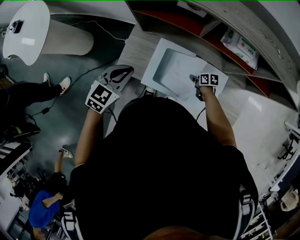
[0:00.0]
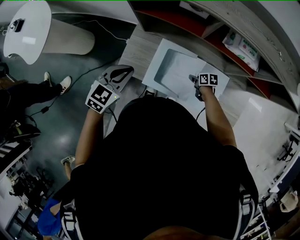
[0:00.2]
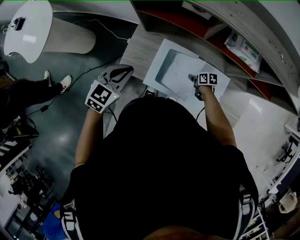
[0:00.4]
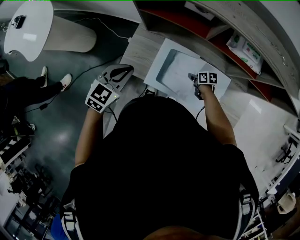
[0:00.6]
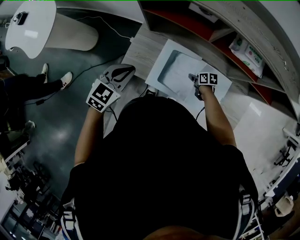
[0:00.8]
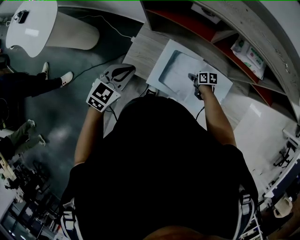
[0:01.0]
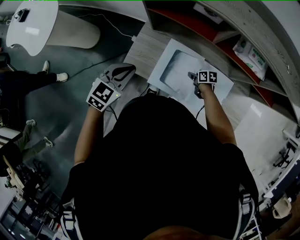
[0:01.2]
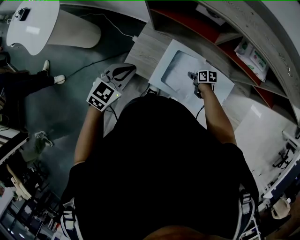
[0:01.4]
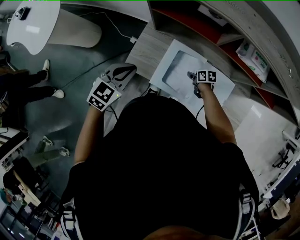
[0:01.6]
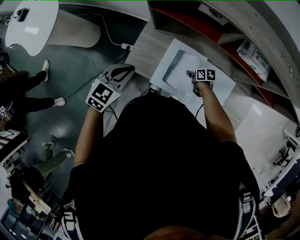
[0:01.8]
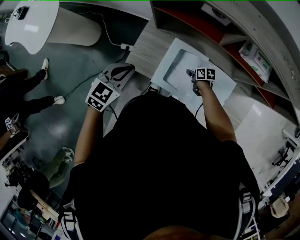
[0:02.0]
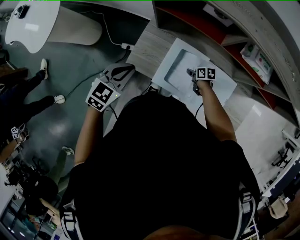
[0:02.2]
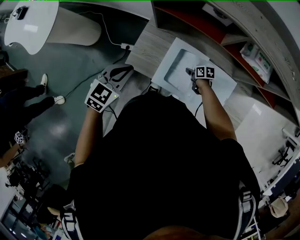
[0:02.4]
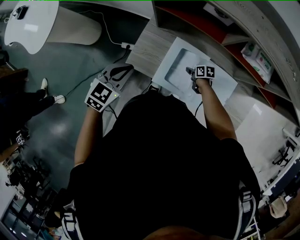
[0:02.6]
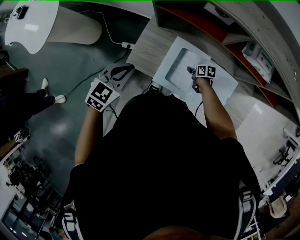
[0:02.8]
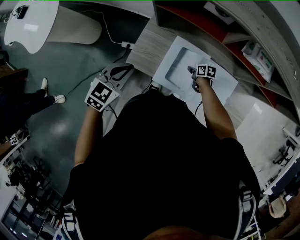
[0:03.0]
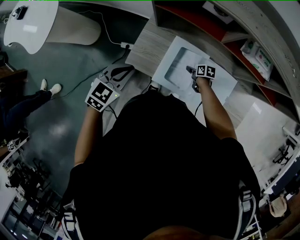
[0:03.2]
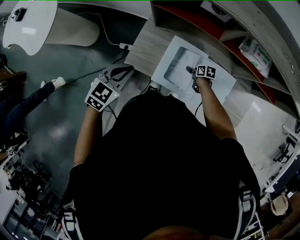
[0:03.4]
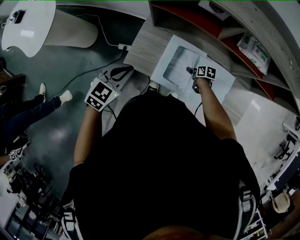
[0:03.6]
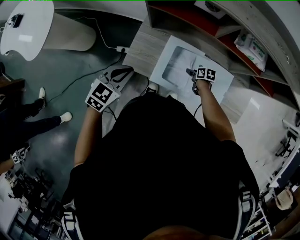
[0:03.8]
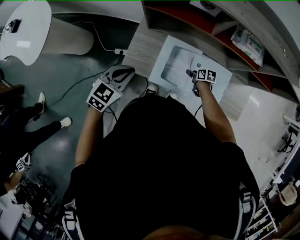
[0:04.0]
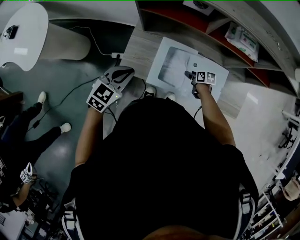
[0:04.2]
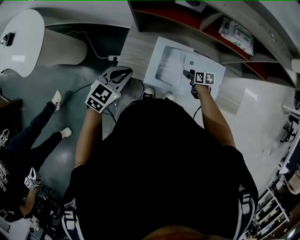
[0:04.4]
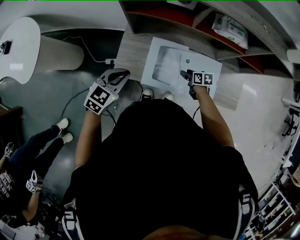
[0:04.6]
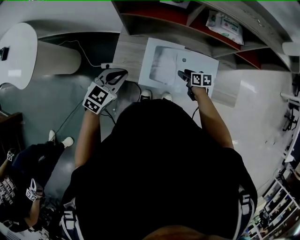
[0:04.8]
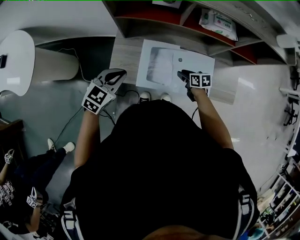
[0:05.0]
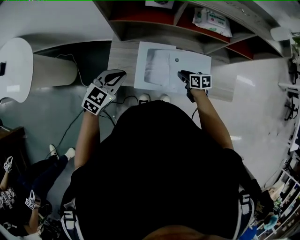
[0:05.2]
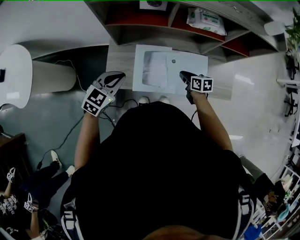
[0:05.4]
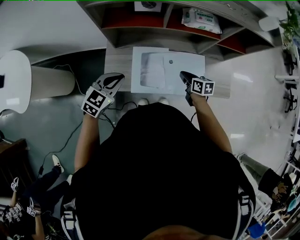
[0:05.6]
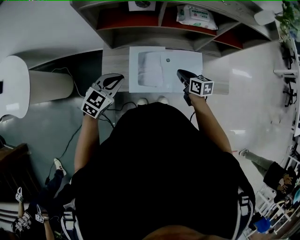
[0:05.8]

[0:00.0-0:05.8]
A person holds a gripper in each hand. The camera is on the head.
0:00.0 to 0:01.4: The right gripper heads to the left, covering approximately 5 cm.
0:01.4 to 0:02.8: The grippers stay close to where they were, moving slightly.
0:02.8 to 0:04.4: The right gripper heads upward, backward and to the right, covering roughly 10 cm, and opens.
0:04.4 to 0:05.8: The left gripper heads to the right, covering some 5 cm. The right gripper is displaced upward by about 15 cm, swivels approximately 20 degrees, and closes its fingers.

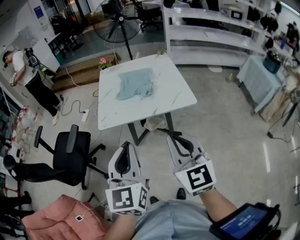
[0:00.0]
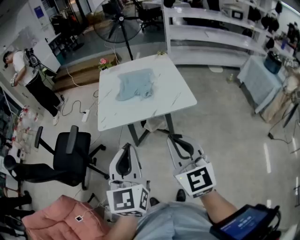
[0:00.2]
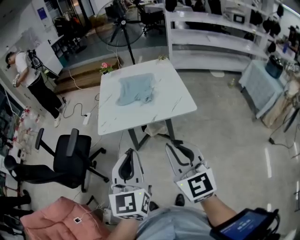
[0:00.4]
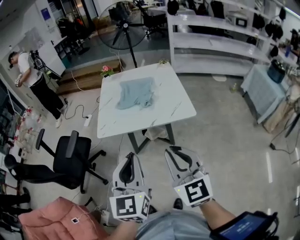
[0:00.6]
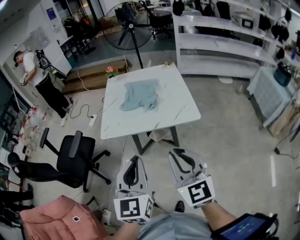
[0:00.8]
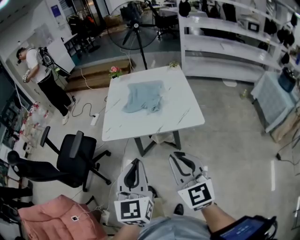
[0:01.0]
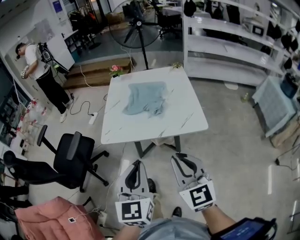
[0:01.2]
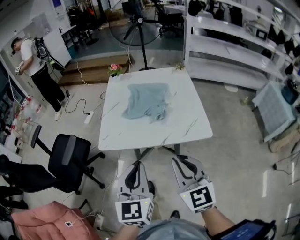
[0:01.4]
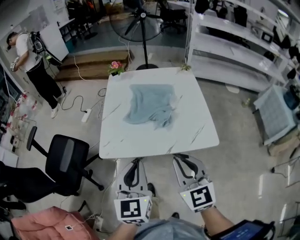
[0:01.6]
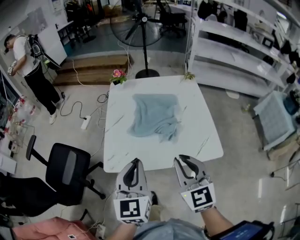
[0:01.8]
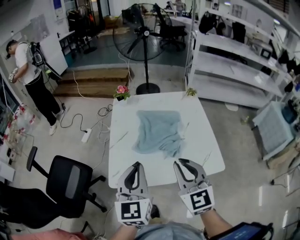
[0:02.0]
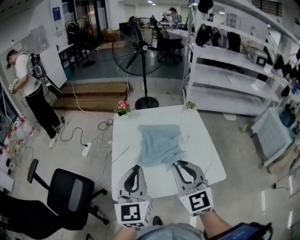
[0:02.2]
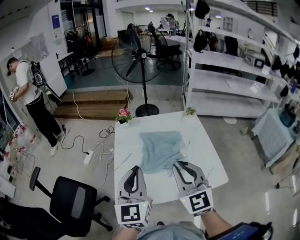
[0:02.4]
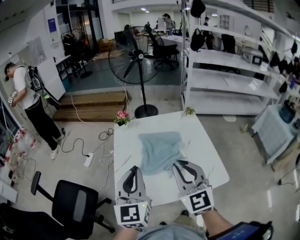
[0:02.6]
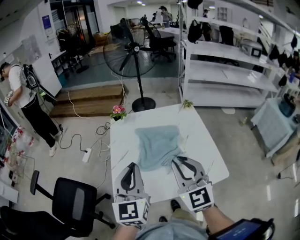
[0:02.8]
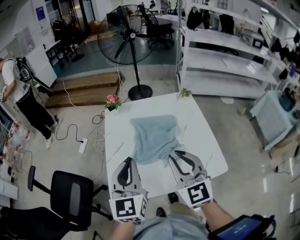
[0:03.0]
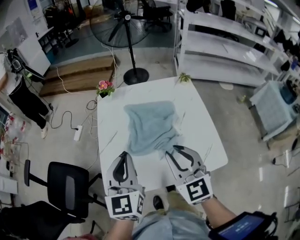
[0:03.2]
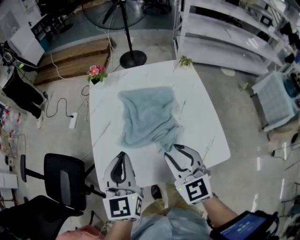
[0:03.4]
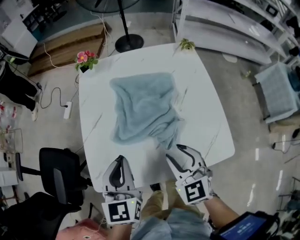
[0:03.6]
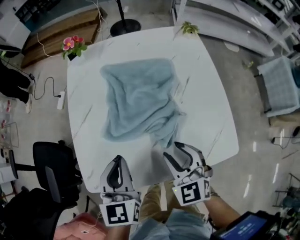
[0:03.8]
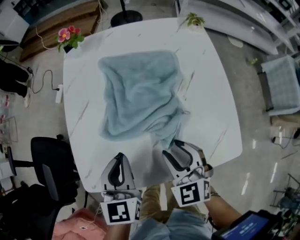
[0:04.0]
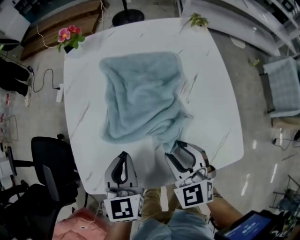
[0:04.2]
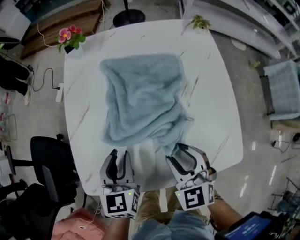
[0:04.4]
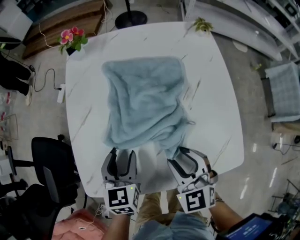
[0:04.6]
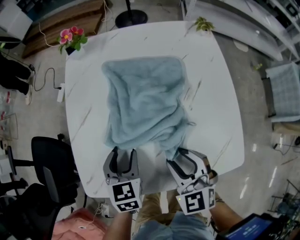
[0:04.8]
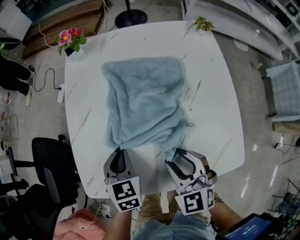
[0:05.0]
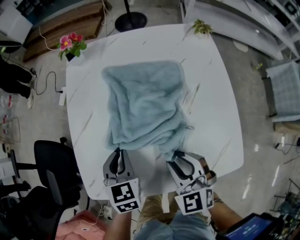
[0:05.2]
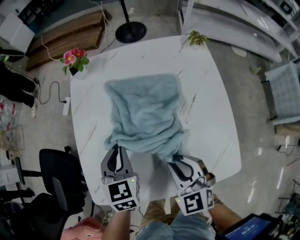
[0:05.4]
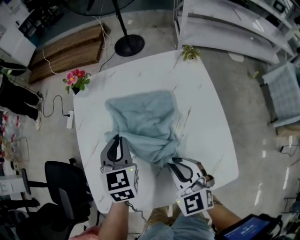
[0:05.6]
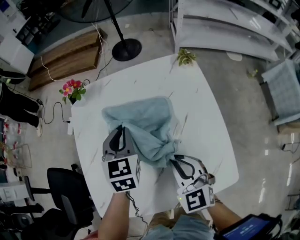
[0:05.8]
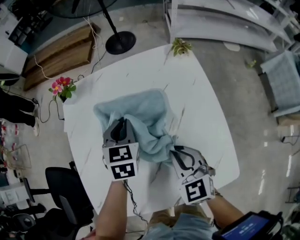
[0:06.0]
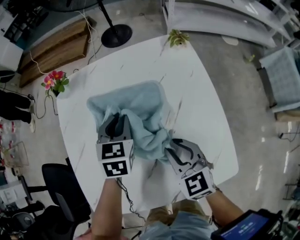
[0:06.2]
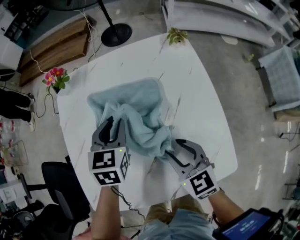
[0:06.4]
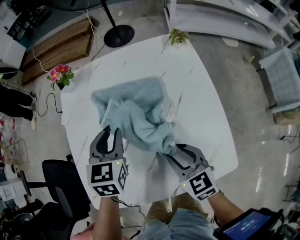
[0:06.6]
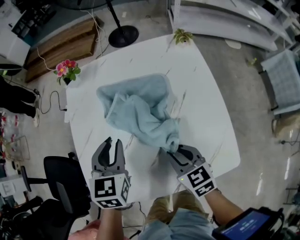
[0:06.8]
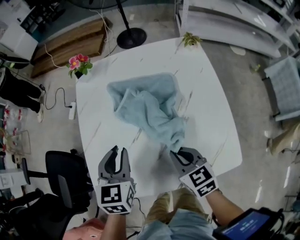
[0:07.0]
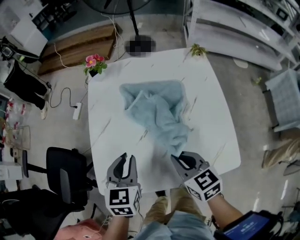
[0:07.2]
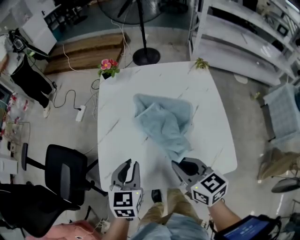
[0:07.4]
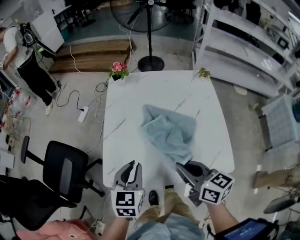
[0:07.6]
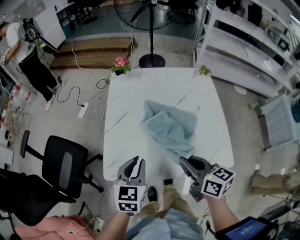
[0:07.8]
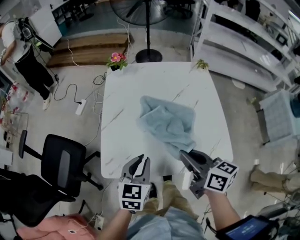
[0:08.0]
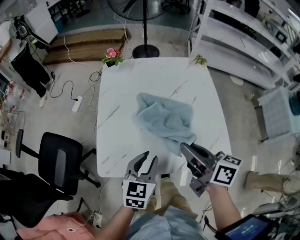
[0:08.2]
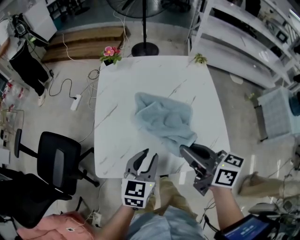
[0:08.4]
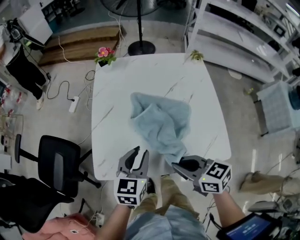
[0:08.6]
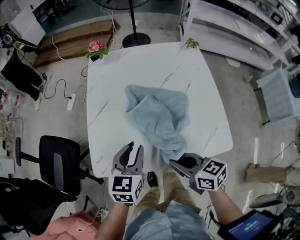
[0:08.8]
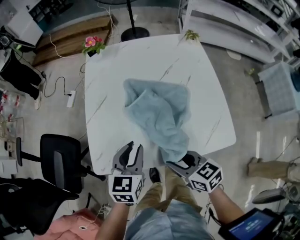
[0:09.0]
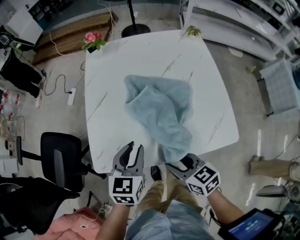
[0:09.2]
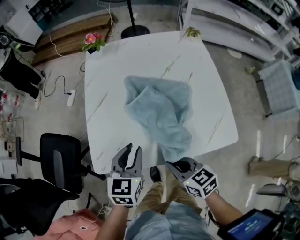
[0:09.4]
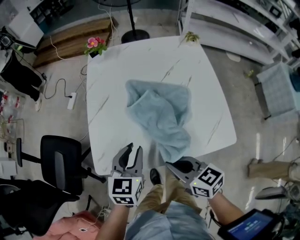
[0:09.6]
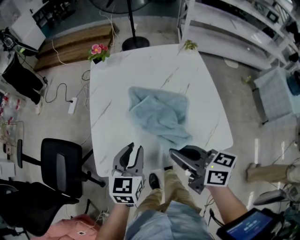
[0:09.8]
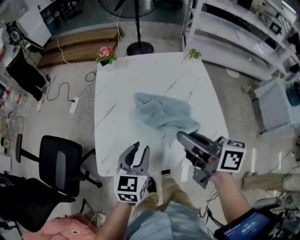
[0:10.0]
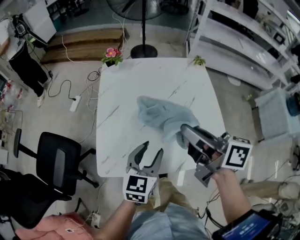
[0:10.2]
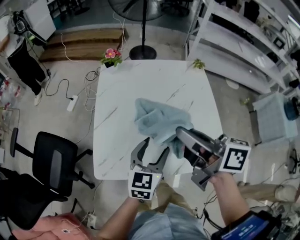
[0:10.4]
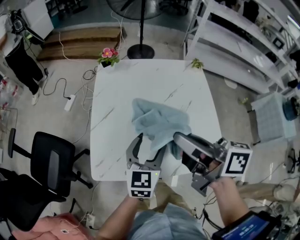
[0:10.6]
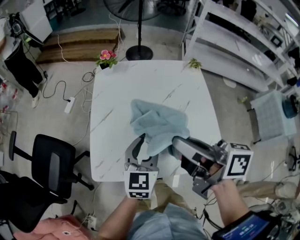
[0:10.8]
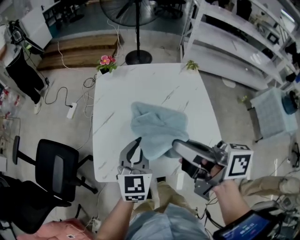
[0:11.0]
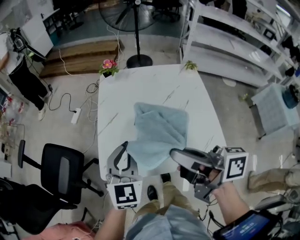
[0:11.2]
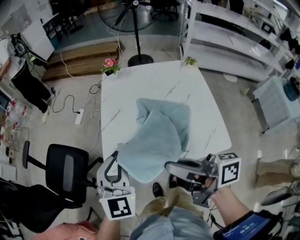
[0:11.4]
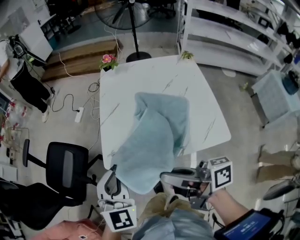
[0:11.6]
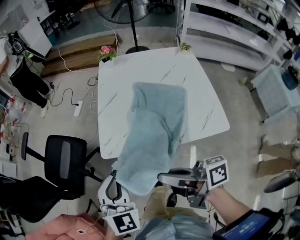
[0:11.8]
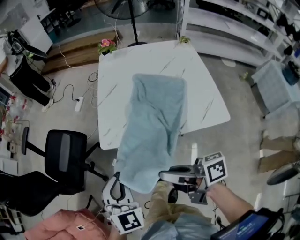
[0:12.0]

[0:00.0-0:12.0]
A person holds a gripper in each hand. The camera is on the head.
0:00.0 to 0:01.6: Both grippers travel together forward and downward, approximately 25 cm.
0:01.6 to 0:03.0: Both grippers move forward, some 20 cm.
0:03.0 to 0:04.4: The grippers both shift downward by some 25 cm. The right gripper rotates some 30 degrees, and opens its fingers, while the left gripper swivels approximately 30 degrees, and opens.
0:04.4 to 0:06.0: The right gripper shifts some 10 cm forward and to the right, and closes up, while the left gripper travels forward and to the right by roughly 25 cm, and opens, then closes once more.
0:06.0 to 0:07.6: The left gripper heads backward and to the left, covering some 30 cm, while the right gripper heads backward, to the left and upward, covering some 20 cm, changes its angle by roughly 40 degrees, and opens, then closes again.
0:07.6 to 0:09.0: The left gripper changes place by some 5 cm; the right gripper heads downward and backward, covering approximately 15 cm, and opens its fingers.
0:09.0 to 0:10.4: The left gripper moves to the right, some 5 cm, and opens; the right gripper travels upward and forward by about 25 cm, turns by about 40 degrees, and closes its fingers.
0:10.4 to 0:12.0: The right gripper travels backward, to the left and downward by approximately 30 cm, and changes its angle by about 30 degrees. Meanwhile the left gripper moves to the left and backward, approximately 30 cm, changes its angle by some 40 degrees, and closes.

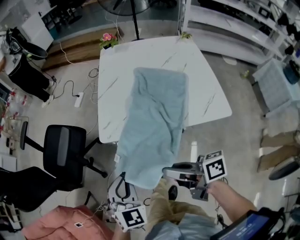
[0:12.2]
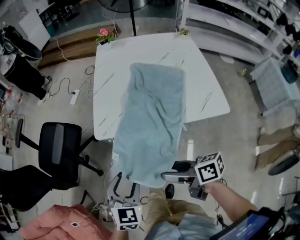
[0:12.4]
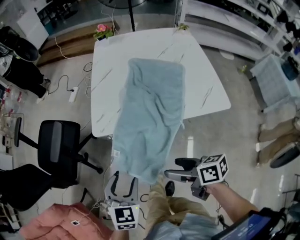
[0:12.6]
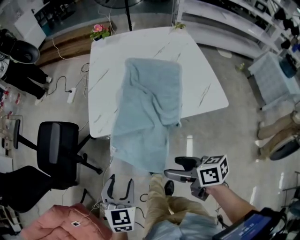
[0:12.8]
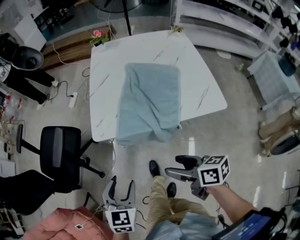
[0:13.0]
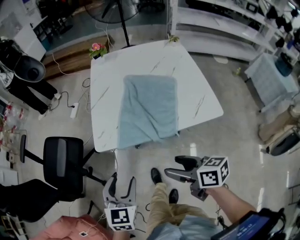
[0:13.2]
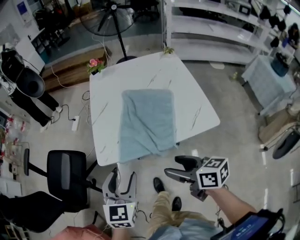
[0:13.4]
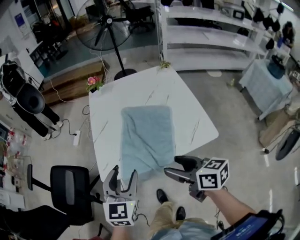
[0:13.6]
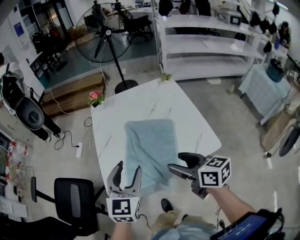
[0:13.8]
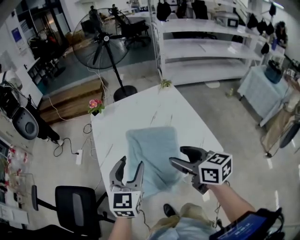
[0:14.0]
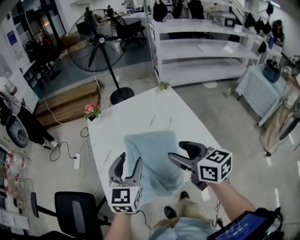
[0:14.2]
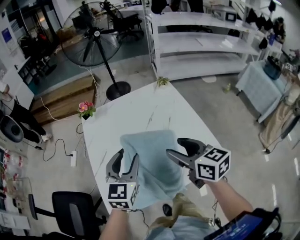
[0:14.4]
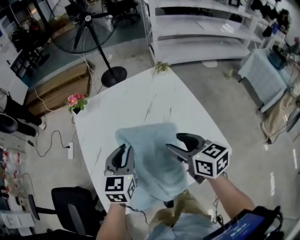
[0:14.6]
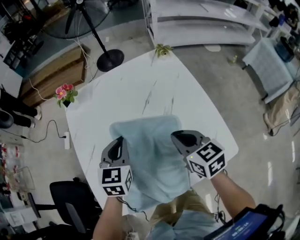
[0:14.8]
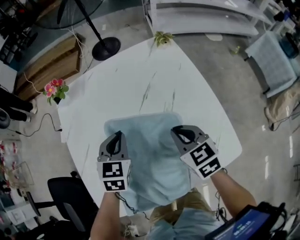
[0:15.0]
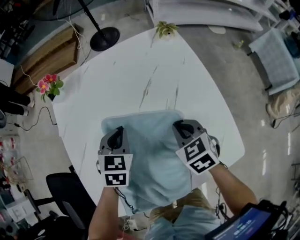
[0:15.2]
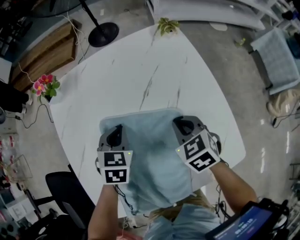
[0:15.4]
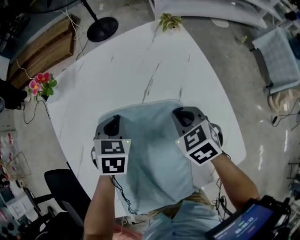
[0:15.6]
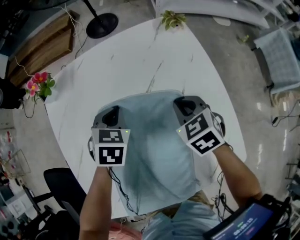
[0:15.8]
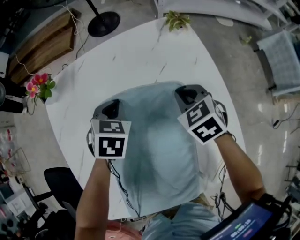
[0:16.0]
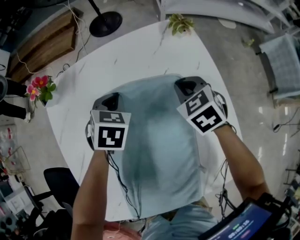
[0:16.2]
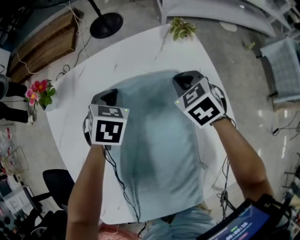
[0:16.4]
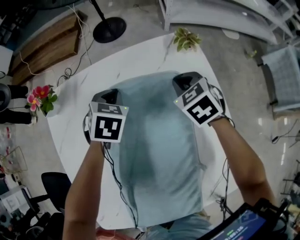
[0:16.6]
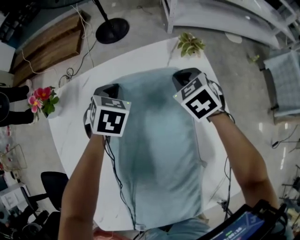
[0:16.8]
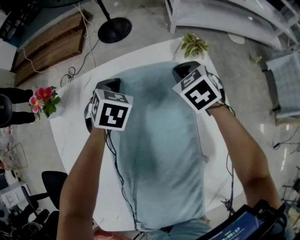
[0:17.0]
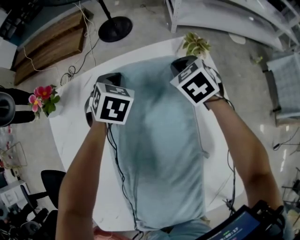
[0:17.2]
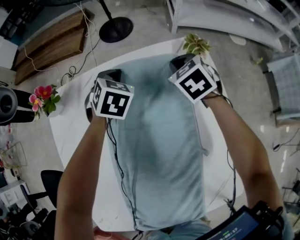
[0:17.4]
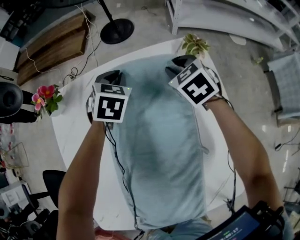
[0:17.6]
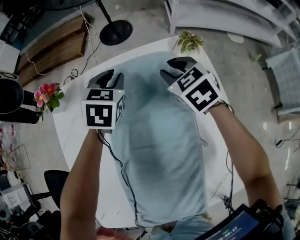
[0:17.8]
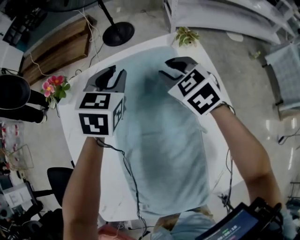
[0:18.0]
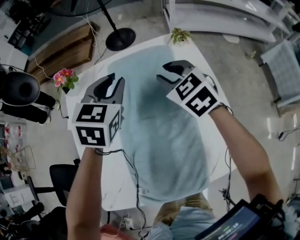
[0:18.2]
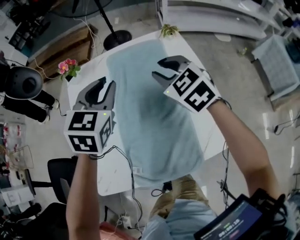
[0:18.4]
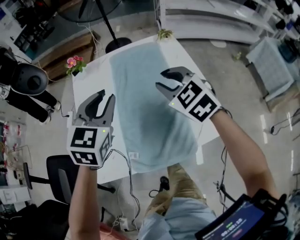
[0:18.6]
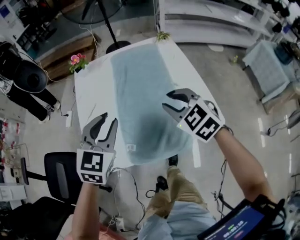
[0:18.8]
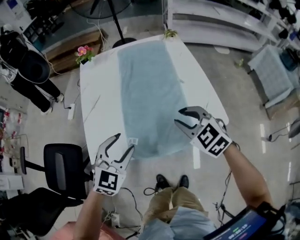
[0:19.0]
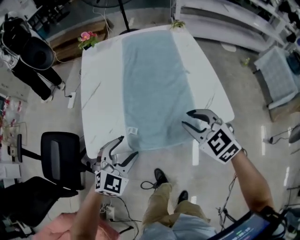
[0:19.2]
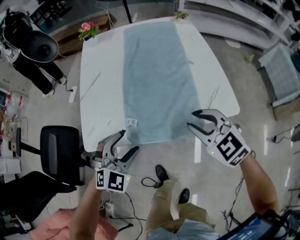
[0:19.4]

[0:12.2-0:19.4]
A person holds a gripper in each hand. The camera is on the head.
0:12.2 to 0:13.6: The left gripper travels forward, to the right and upward by some 20 cm, turns by some 20 degrees, and opens up. Meanwhile the right gripper is displaced to the right and forward by roughly 15 cm, changes its angle by approximately 40 degrees, and opens up.
0:13.6 to 0:15.0: Both grippers travel together forward and downward, some 35 cm. The right gripper turns by roughly 40 degrees, and closes. The left gripper rotates roughly 20 degrees, and closes its fingers.
0:15.0 to 0:16.6: Both grippers move forward, some 25 cm. The right gripper turns by some 20 degrees.
0:16.6 to 0:18.0: The left gripper heads upward, covering approximately 10 cm, and rotates some 20 degrees, while the right gripper goes about 10 cm upward and to the left, and goes forward and returns, approximately 10 cm each way.
0:18.0 to 0:19.4: The pair of grippers is taken backward, about 50 cm. The left gripper swivels approximately 30 degrees, and opens up.
